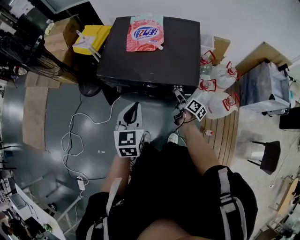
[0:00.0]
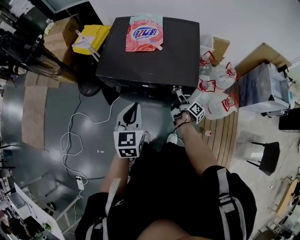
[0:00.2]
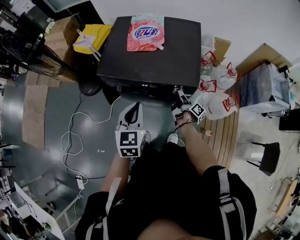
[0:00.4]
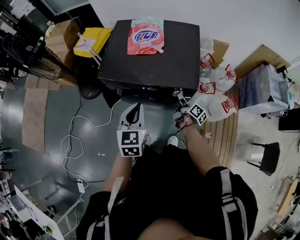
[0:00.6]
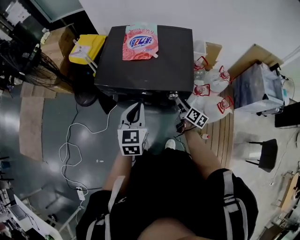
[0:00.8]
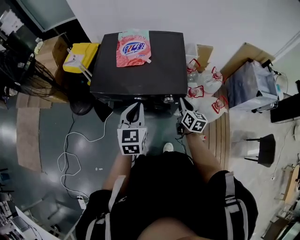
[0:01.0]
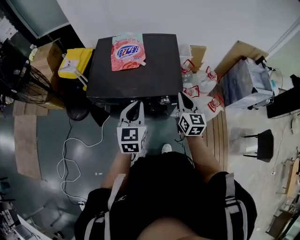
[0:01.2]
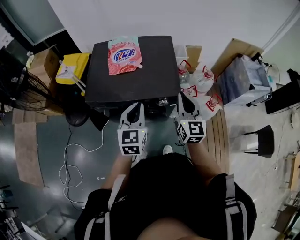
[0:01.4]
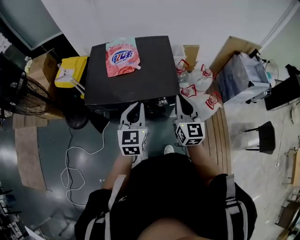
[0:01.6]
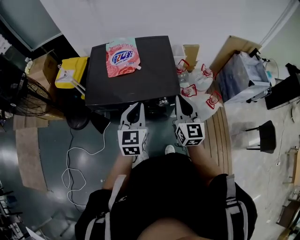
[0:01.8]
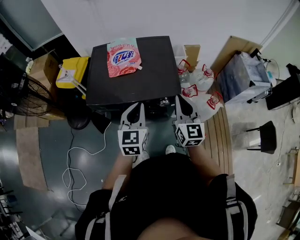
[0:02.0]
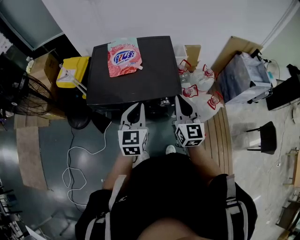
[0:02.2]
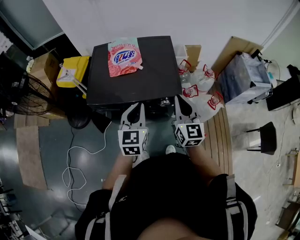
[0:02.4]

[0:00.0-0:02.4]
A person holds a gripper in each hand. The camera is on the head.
0:00.0 to 0:01.2: The left gripper shifts by about 5 cm. The right gripper heads upward, covering about 20 cm, rolls counterclockwise, seen from behind, by some 60 degrees, and closes.
0:01.2 to 0:02.4: The right gripper heads upward, covering some 5 cm.

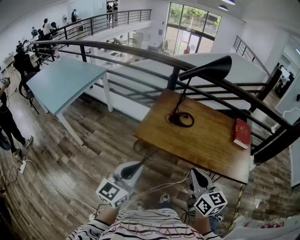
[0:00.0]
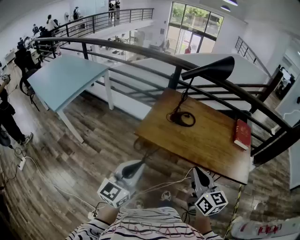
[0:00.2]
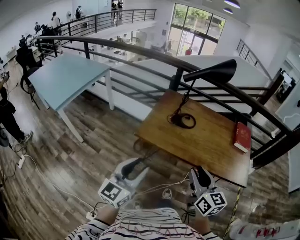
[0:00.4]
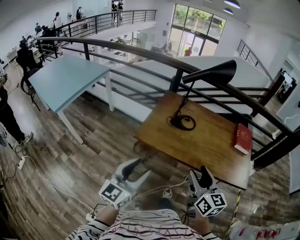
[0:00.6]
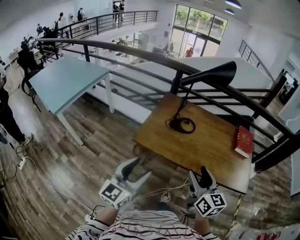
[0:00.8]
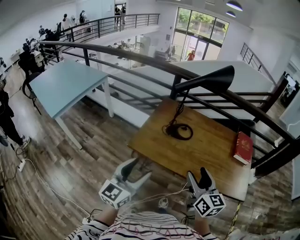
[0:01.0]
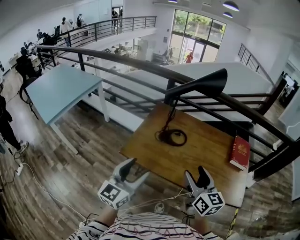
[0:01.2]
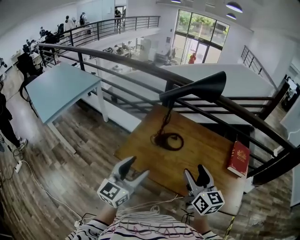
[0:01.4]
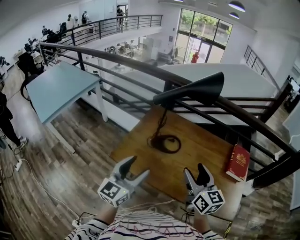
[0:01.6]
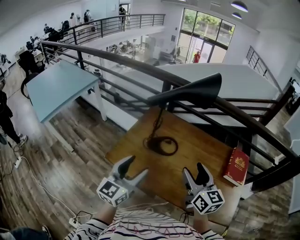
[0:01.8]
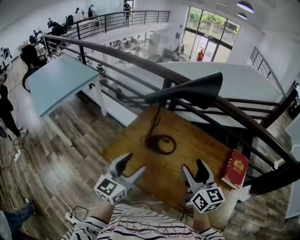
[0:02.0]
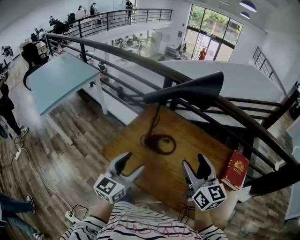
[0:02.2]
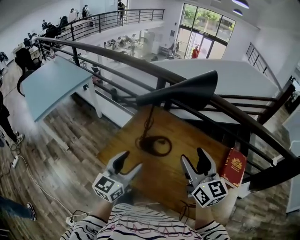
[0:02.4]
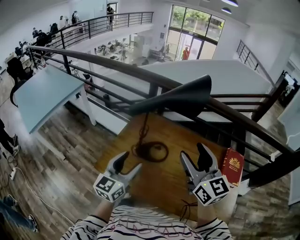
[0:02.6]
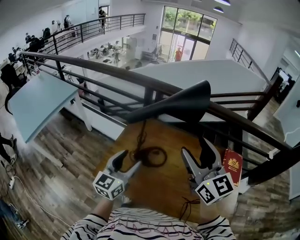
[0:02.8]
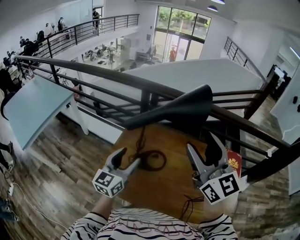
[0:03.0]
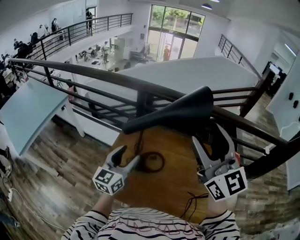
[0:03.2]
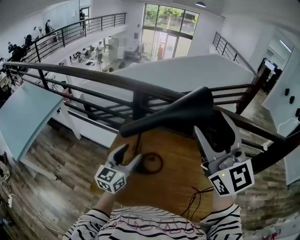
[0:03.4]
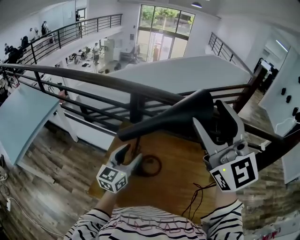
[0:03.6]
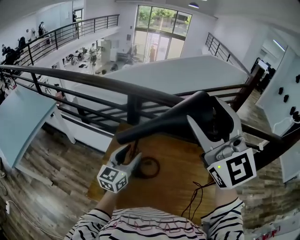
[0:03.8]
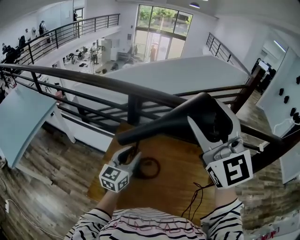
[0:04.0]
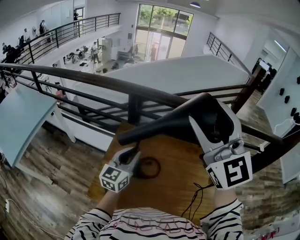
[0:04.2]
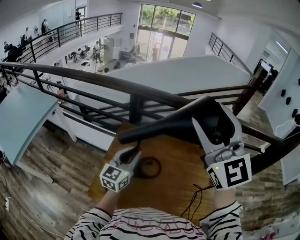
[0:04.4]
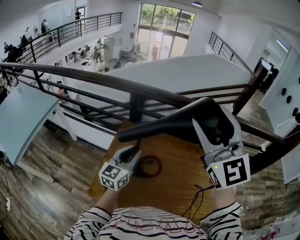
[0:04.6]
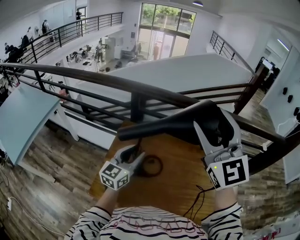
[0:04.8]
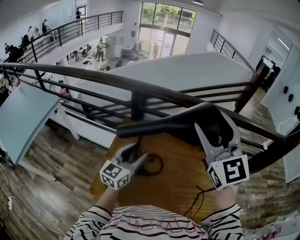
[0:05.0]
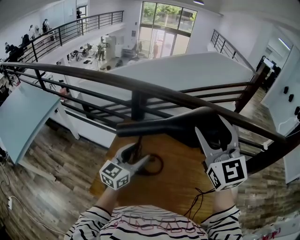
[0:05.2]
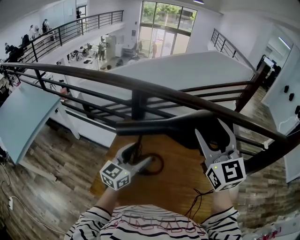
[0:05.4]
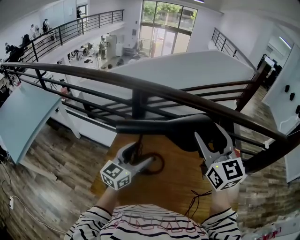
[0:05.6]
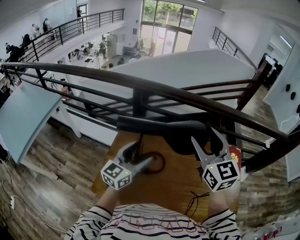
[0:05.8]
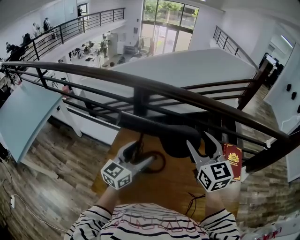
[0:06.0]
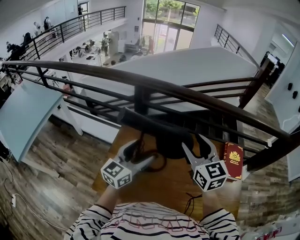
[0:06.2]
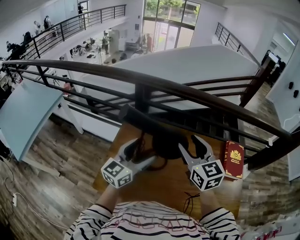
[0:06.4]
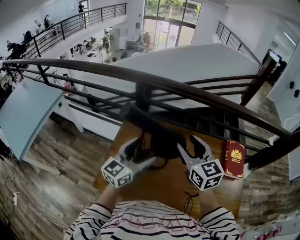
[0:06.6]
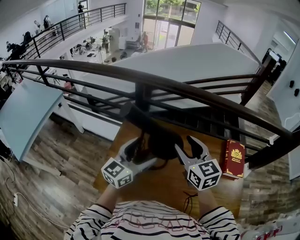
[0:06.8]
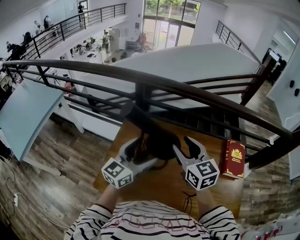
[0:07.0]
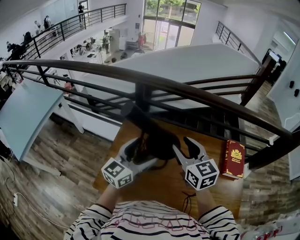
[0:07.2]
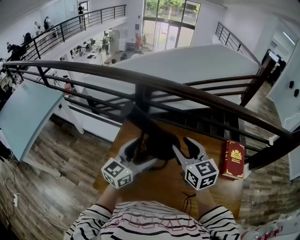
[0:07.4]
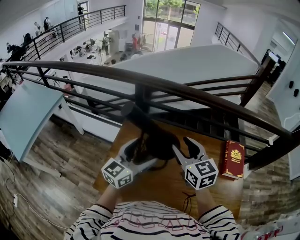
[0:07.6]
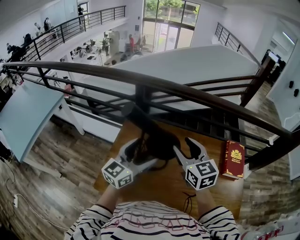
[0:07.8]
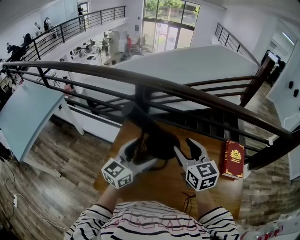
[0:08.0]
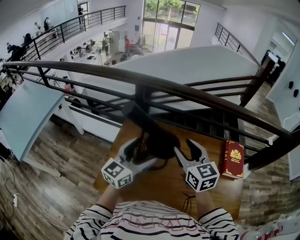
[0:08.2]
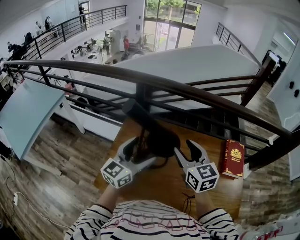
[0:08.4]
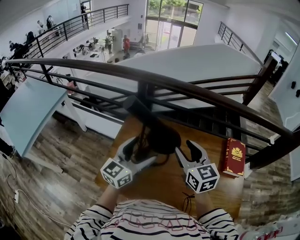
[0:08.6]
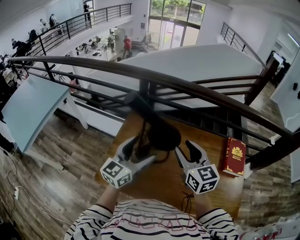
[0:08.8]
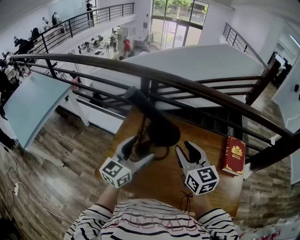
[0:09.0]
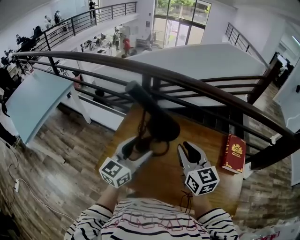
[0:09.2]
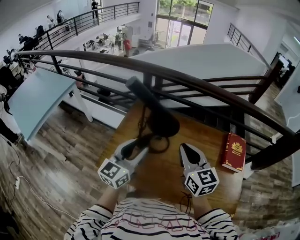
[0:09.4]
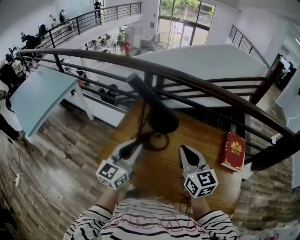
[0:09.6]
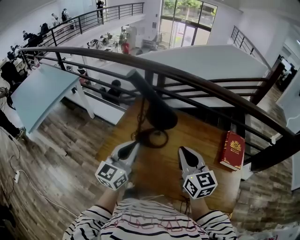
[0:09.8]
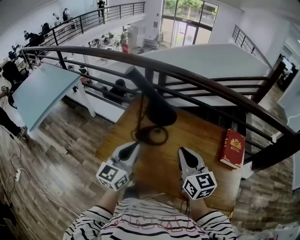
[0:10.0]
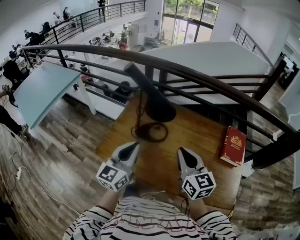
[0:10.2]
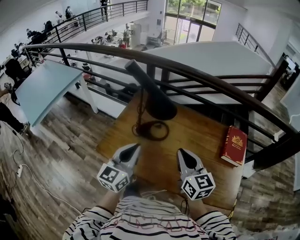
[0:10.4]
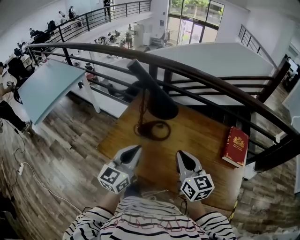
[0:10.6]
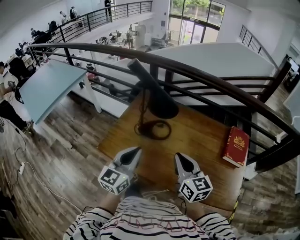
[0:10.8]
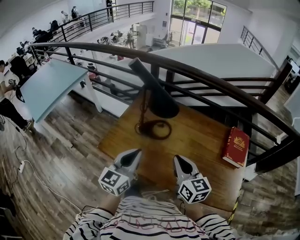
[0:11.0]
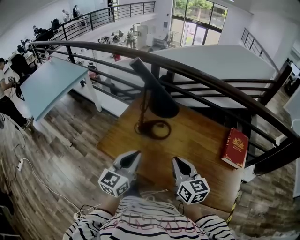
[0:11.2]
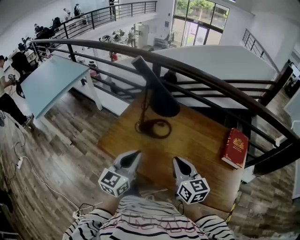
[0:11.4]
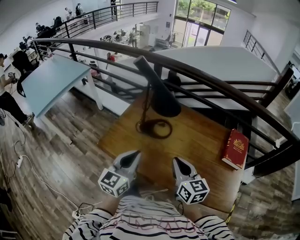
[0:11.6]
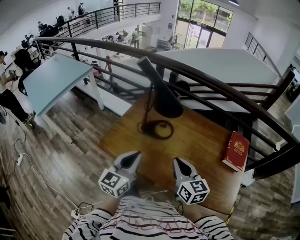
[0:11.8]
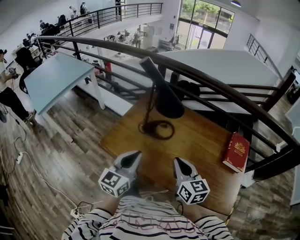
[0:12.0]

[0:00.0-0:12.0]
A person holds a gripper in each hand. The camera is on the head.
0:00.0 to 0:01.6: Both grippers move forward and to the right, roughly 30 cm. The right gripper opens. The left gripper opens.
0:01.6 to 0:03.0: The right gripper moves upward and forward, about 25 cm, and changes its angle by approximately 30 degrees. The left gripper moves forward, roughly 20 cm.
0:03.0 to 0:04.4: The left gripper is displaced forward by about 10 cm, and closes up, while the right gripper travels upward and forward by some 10 cm, and swivels about 30 degrees.
0:04.4 to 0:06.0: The right gripper moves downward, about 20 cm, and rotates about 30 degrees. The left gripper opens its fingers.
0:06.0 to 0:07.6: The right gripper heads downward, covering approximately 5 cm.
0:07.6 to 0:09.0: Both grippers travel together backward, approximately 5 cm.
0:09.0 to 0:10.4: Both grippers travel together backward, roughly 15 cm. The right gripper closes, while the left gripper closes.
0:10.4 to 0:12.0: The left gripper heads backward, covering about 5 cm. The right gripper shifts by roughly 5 cm.

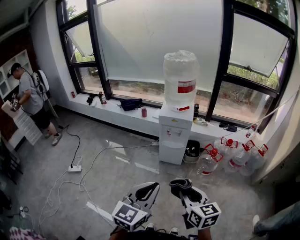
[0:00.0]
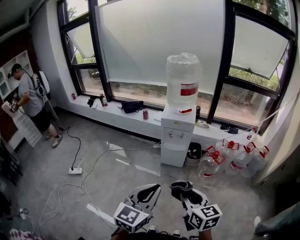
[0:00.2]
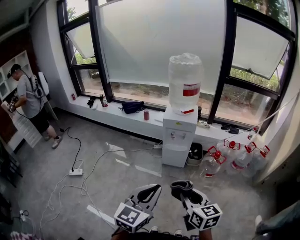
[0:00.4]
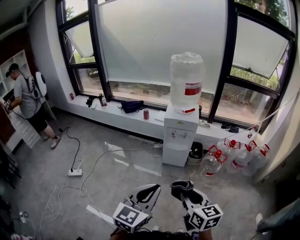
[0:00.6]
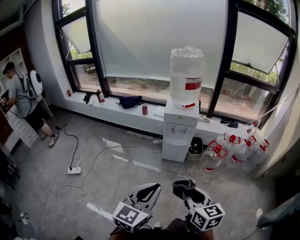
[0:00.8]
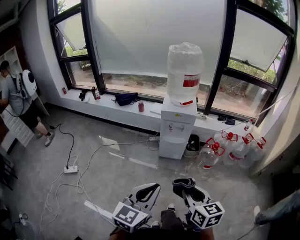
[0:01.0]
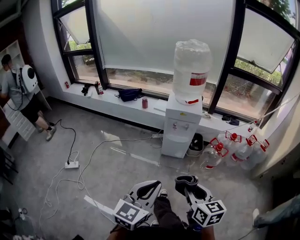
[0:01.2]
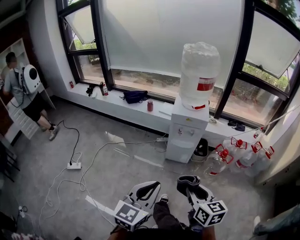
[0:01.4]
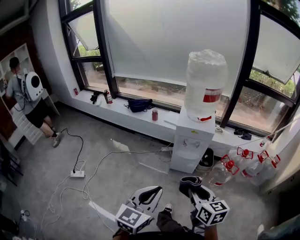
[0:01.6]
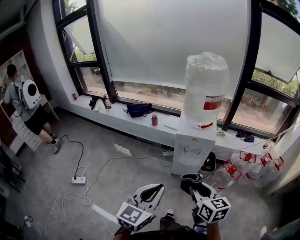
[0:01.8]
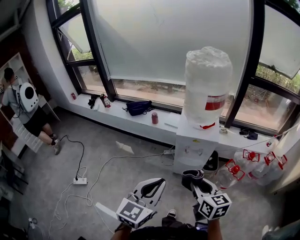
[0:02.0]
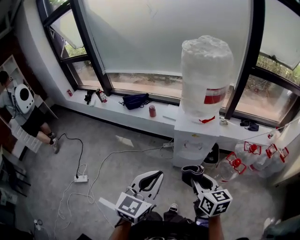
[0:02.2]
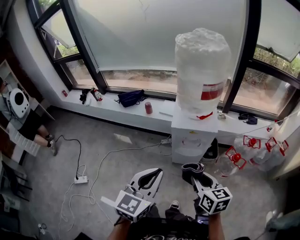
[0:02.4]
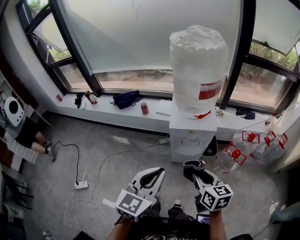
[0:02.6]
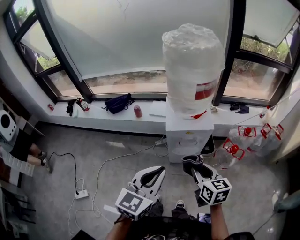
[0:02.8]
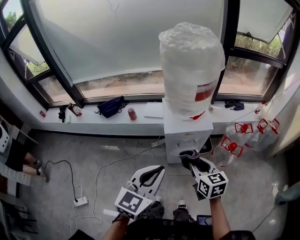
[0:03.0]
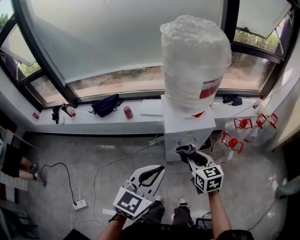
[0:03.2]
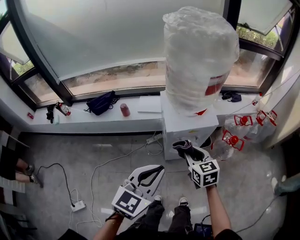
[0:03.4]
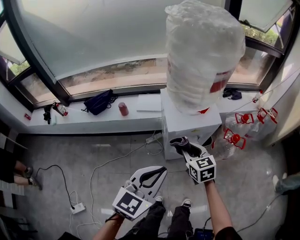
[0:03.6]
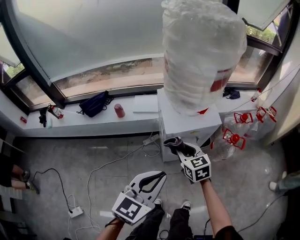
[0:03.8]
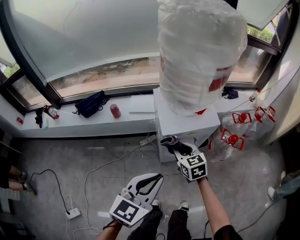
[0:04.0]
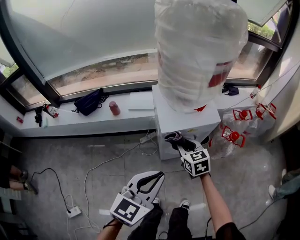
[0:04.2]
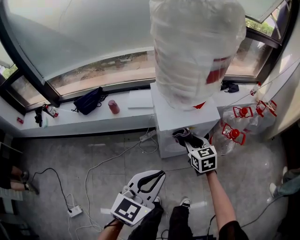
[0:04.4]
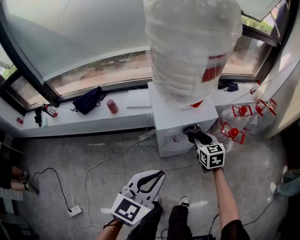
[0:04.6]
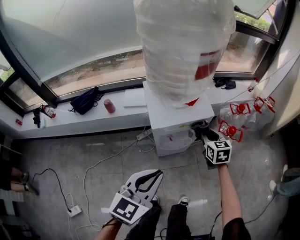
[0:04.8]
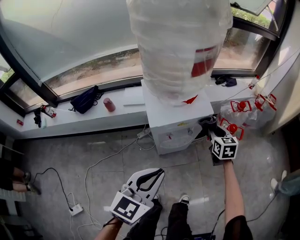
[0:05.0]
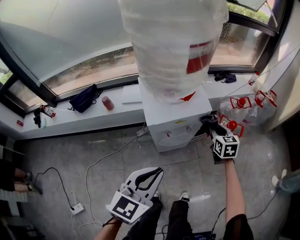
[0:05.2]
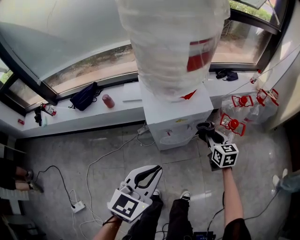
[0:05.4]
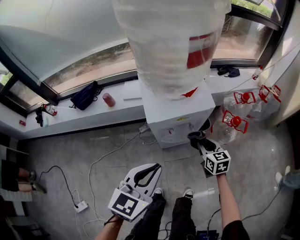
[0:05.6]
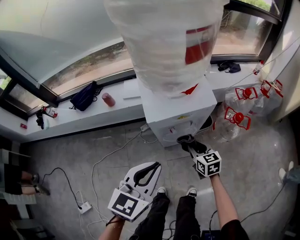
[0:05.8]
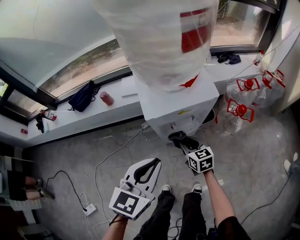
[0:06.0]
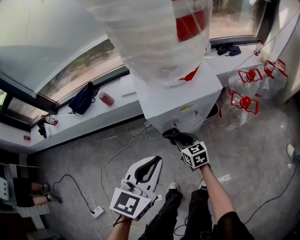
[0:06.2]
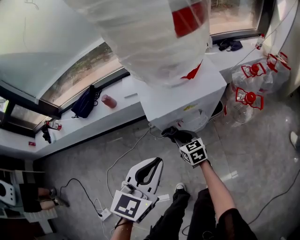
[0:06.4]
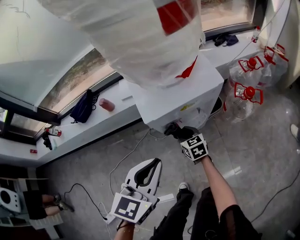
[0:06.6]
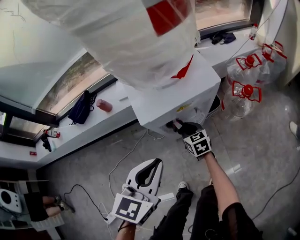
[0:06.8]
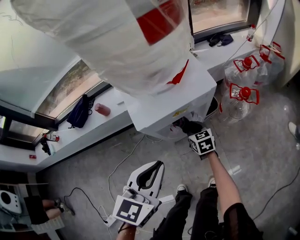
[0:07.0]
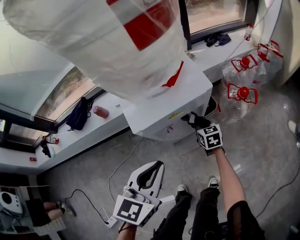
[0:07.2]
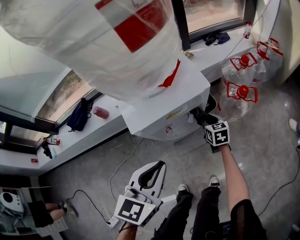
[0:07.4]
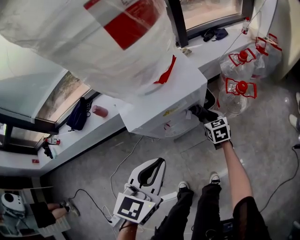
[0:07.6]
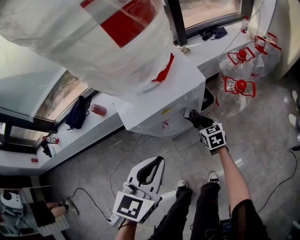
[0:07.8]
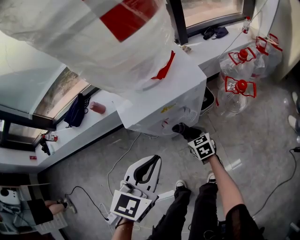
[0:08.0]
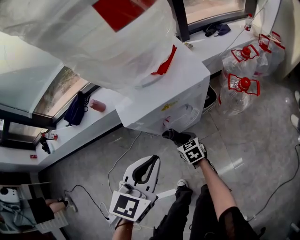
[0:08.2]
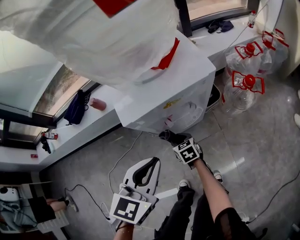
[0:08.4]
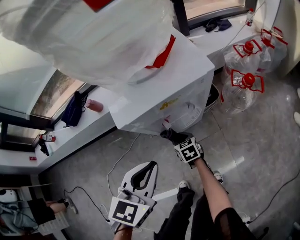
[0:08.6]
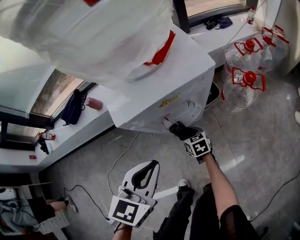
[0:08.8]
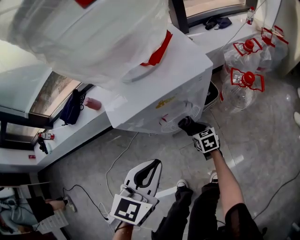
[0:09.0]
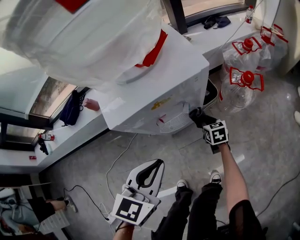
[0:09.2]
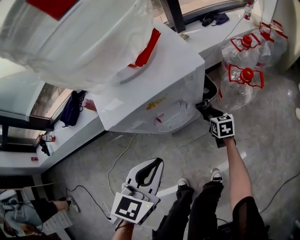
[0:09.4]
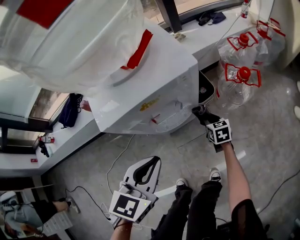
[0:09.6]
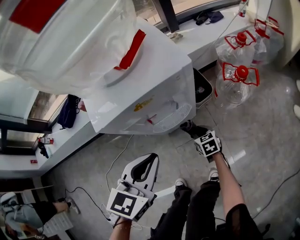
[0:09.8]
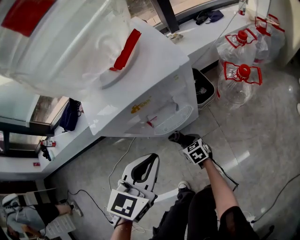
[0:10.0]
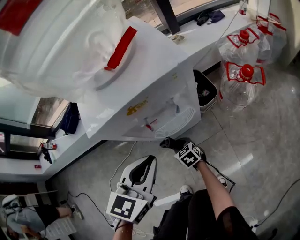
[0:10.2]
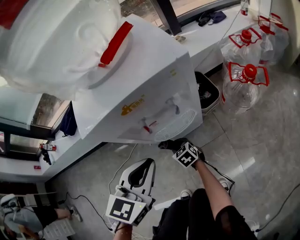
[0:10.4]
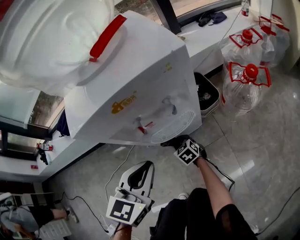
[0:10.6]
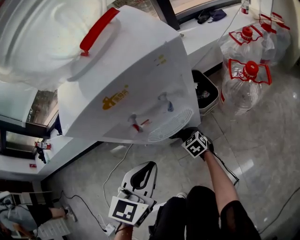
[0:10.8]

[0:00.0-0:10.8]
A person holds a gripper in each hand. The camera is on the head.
0:00.0 to 0:01.6: The right gripper goes about 20 cm forward and to the left. The left gripper travels forward, to the left and downward by approximately 20 cm.
0:01.6 to 0:03.0: Both grippers move forward, some 30 cm.
0:03.0 to 0:04.6: The left gripper shifts approximately 15 cm downward and forward; the right gripper moves downward and forward, about 25 cm.
0:04.6 to 0:06.2: The right gripper shifts approximately 20 cm downward and to the left; the left gripper moves downward and forward, some 10 cm.
0:06.2 to 0:07.8: The left gripper ends up about 5 cm from where it was; the right gripper heads to the right and forward, covering roughly 15 cm.
0:07.8 to 0:09.2: Both grippers move downward, some 10 cm. The right gripper travels to the left and back again, about 15 cm each way.
0:09.2 to 0:10.8: The left gripper goes roughly 15 cm downward. The right gripper swings left and right, about 20 cm each way, with 2 reversals, and swivels about 20 degrees.
